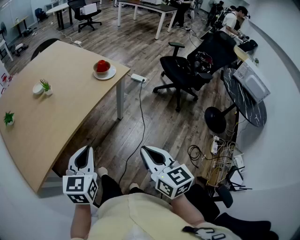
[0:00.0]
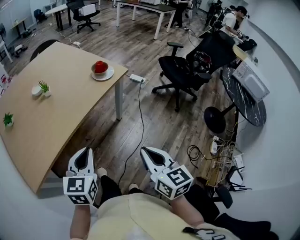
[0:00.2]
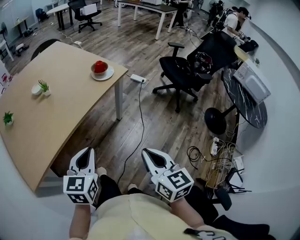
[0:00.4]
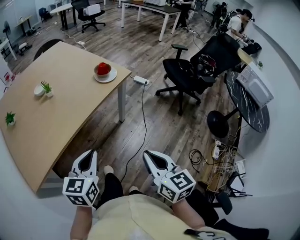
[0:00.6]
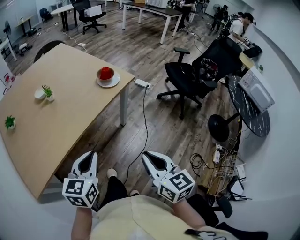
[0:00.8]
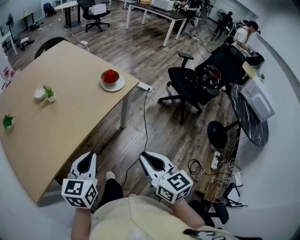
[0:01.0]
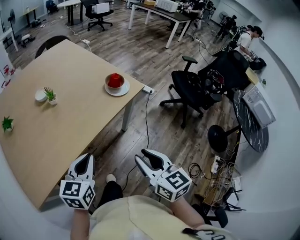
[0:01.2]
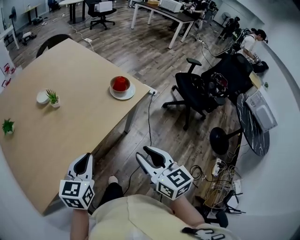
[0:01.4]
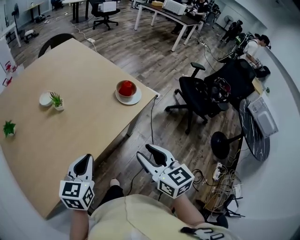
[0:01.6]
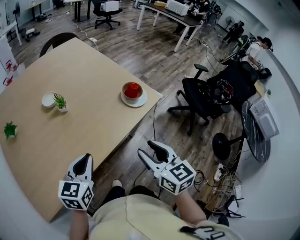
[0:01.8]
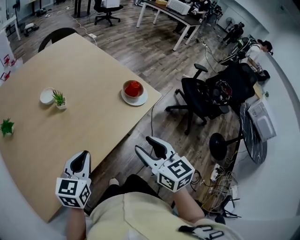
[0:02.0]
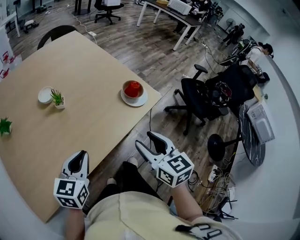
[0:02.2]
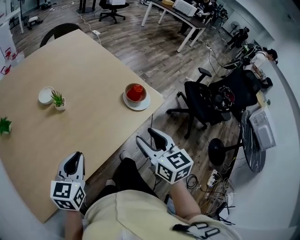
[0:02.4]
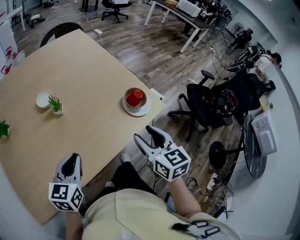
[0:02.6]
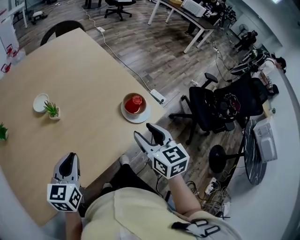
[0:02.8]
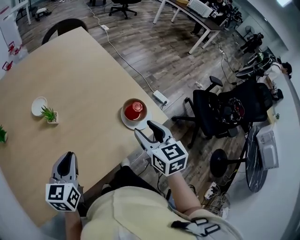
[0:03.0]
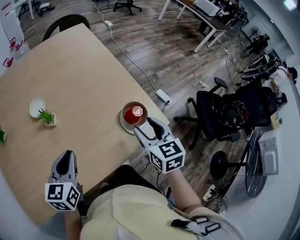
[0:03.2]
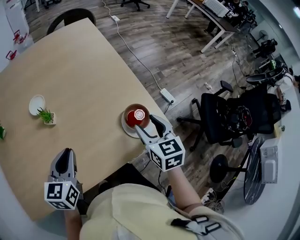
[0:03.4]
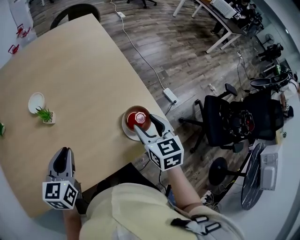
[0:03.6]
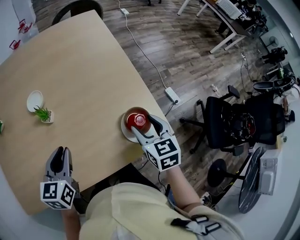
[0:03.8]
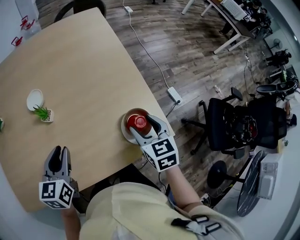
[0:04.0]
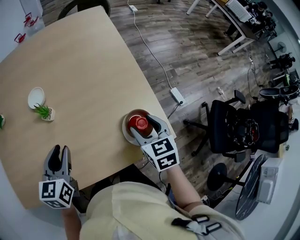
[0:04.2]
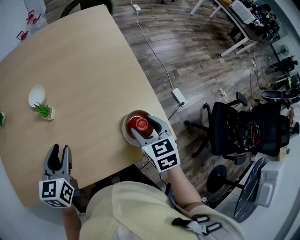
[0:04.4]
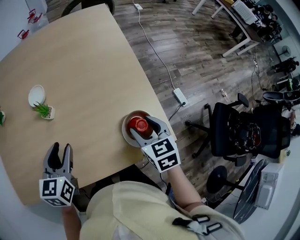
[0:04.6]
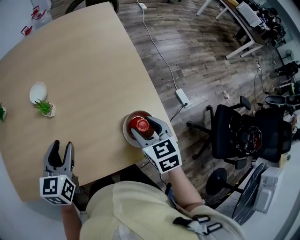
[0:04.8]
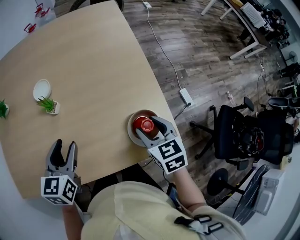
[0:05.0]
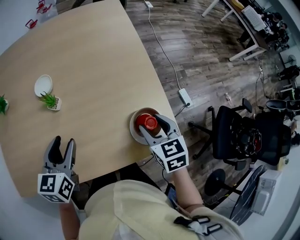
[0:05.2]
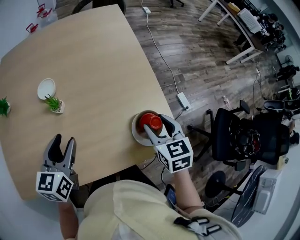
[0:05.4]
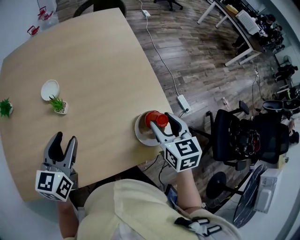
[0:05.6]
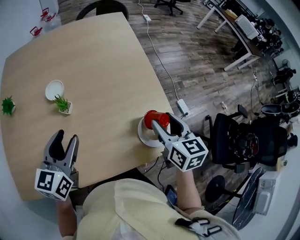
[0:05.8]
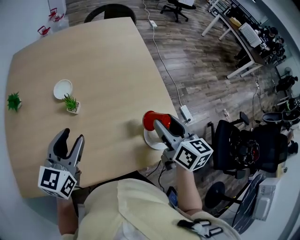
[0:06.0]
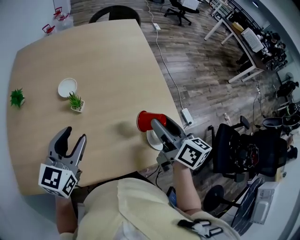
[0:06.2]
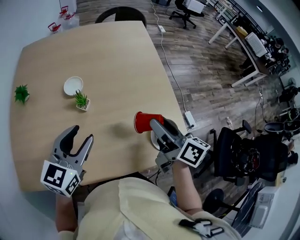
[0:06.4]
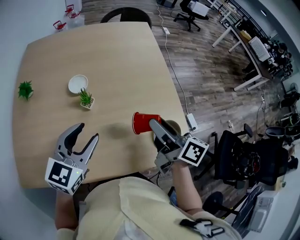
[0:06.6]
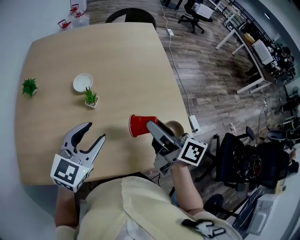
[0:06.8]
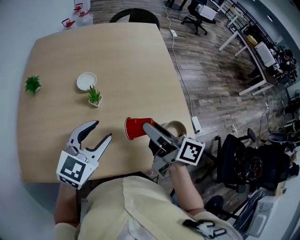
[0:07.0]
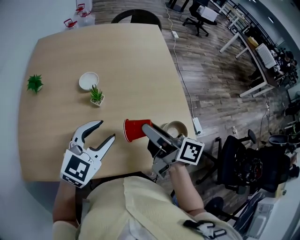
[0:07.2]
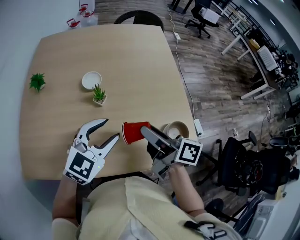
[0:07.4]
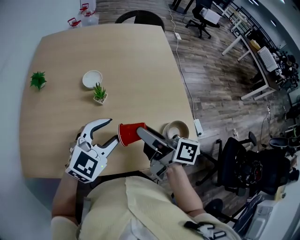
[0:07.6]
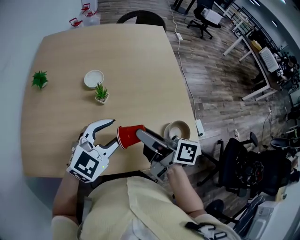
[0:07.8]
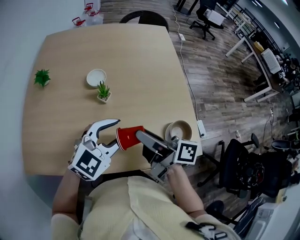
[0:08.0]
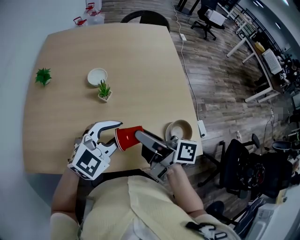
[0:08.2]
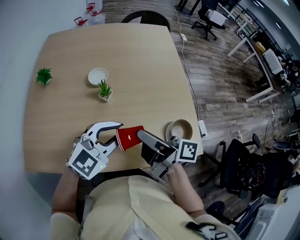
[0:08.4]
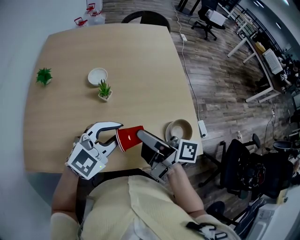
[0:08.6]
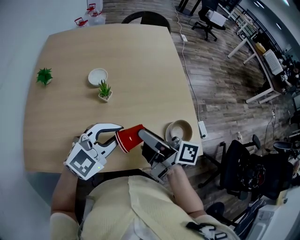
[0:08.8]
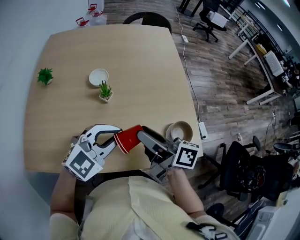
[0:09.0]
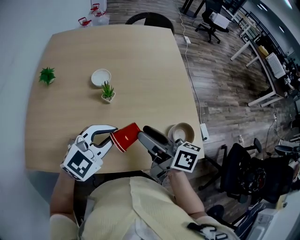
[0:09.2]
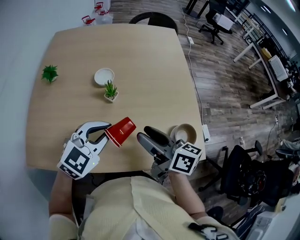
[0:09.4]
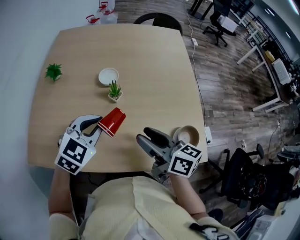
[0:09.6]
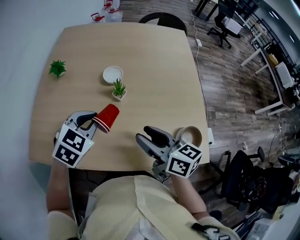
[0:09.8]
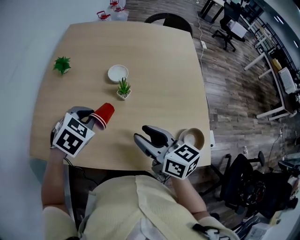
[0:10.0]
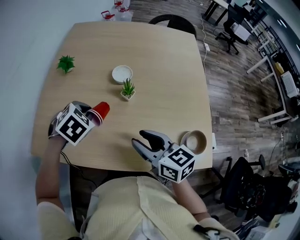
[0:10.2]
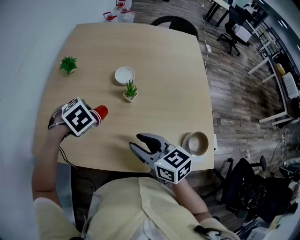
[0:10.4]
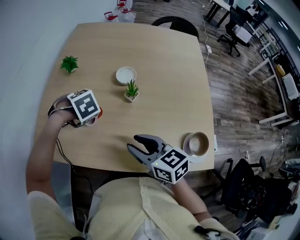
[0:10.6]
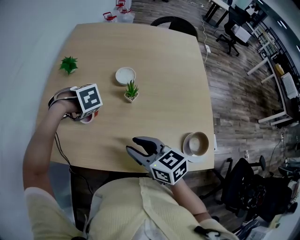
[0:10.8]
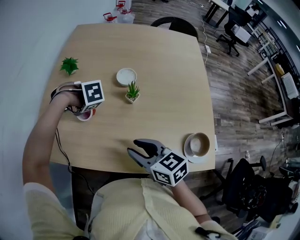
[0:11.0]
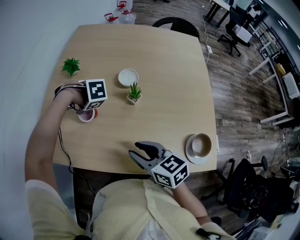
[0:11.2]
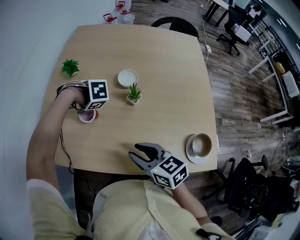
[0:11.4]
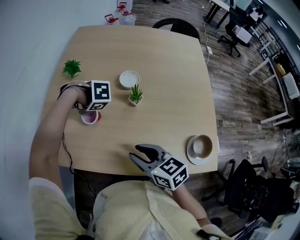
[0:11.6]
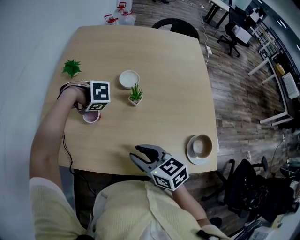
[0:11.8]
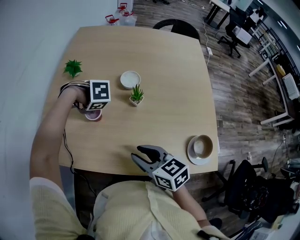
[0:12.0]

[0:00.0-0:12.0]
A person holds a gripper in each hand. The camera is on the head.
0:00.0 to 0:01.6: Both grippers move forward and to the left, about 20 cm. The right gripper opens up.
0:01.6 to 0:03.0: The right gripper travels forward by some 25 cm. The left gripper is displaced forward by some 15 cm.
0:03.0 to 0:04.4: The left gripper moves forward, approximately 5 cm, changes its angle by roughly 20 degrees, and opens its fingers; the right gripper moves forward and downward, approximately 15 cm, and rotates roughly 20 degrees.
0:04.4 to 0:06.0: The left gripper goes some 5 cm upward; the right gripper moves upward, about 10 cm, and rotates some 30 degrees.
0:06.0 to 0:07.6: The right gripper moves to the left, about 15 cm, and changes its angle by approximately 50 degrees. The left gripper shifts by roughly 5 cm, and changes its angle by about 30 degrees.
0:07.6 to 0:09.0: The left gripper closes its fingers.
0:09.0 to 0:10.4: The left gripper changes place by some 25 cm, and tilts its fingers roughly 50 degrees downward, while the right gripper ends up roughly 10 cm from where it was, and swivels roughly 50 degrees.
0:10.4 to 0:12.0: The left gripper changes place by some 5 cm, swivels some 40 degrees, and opens.

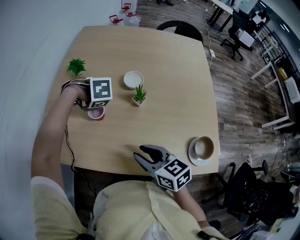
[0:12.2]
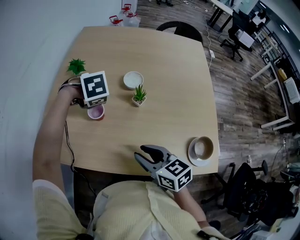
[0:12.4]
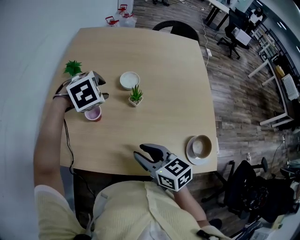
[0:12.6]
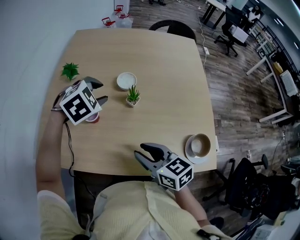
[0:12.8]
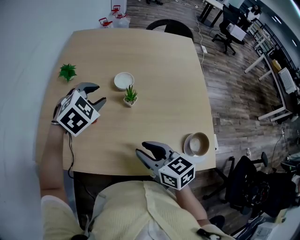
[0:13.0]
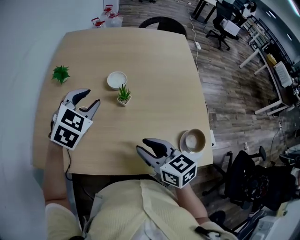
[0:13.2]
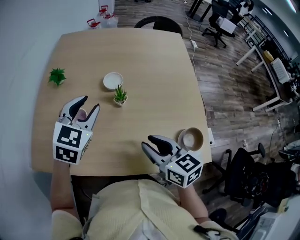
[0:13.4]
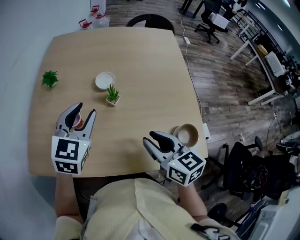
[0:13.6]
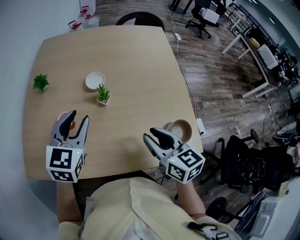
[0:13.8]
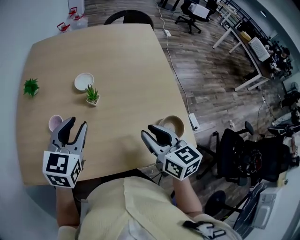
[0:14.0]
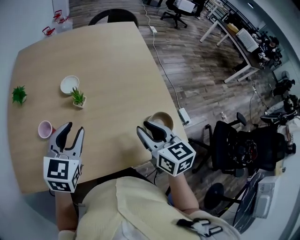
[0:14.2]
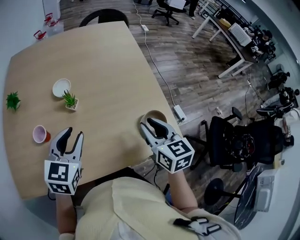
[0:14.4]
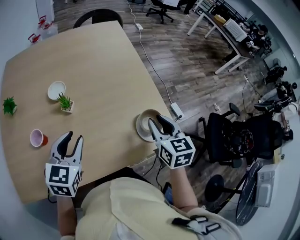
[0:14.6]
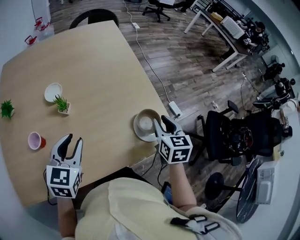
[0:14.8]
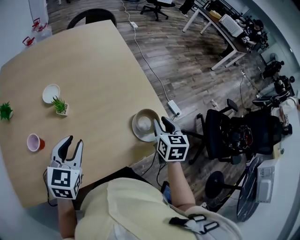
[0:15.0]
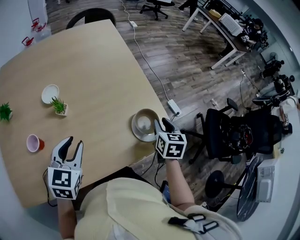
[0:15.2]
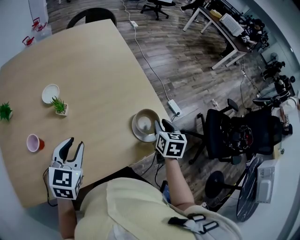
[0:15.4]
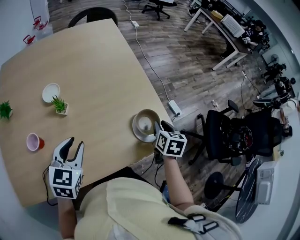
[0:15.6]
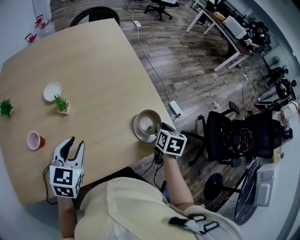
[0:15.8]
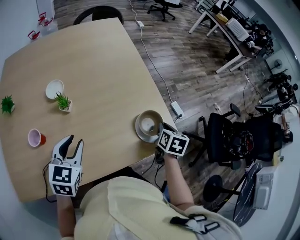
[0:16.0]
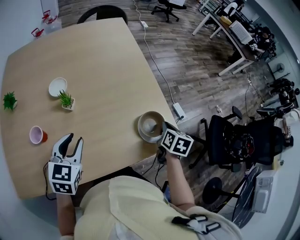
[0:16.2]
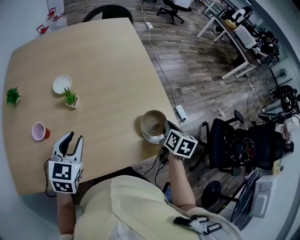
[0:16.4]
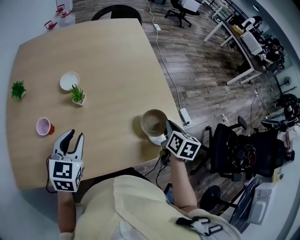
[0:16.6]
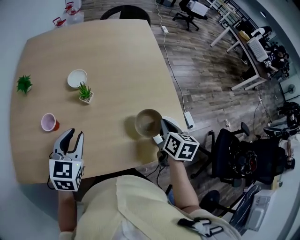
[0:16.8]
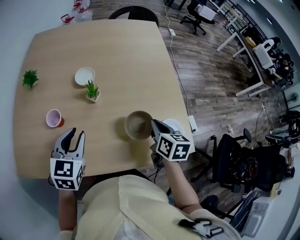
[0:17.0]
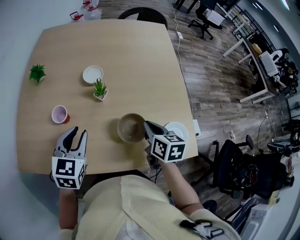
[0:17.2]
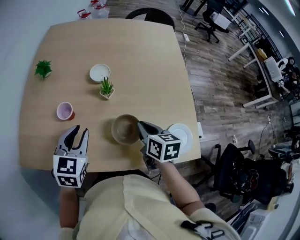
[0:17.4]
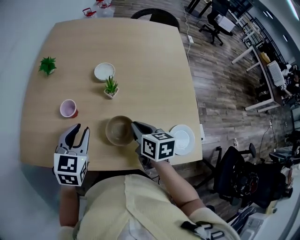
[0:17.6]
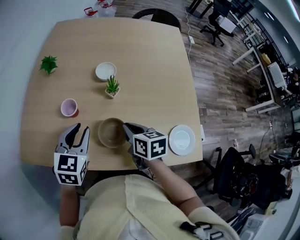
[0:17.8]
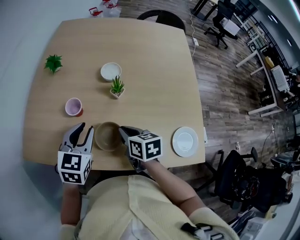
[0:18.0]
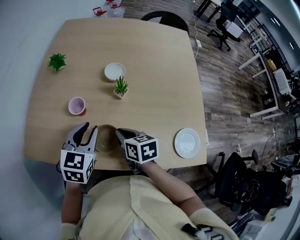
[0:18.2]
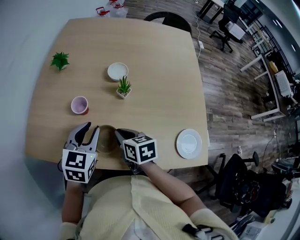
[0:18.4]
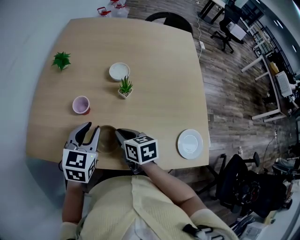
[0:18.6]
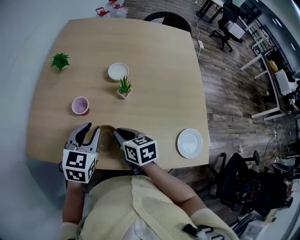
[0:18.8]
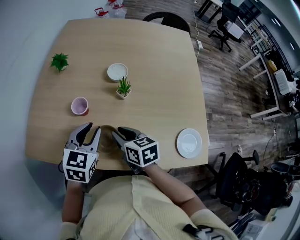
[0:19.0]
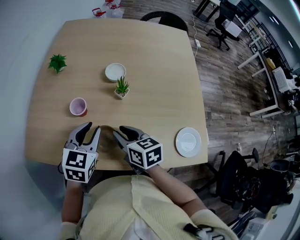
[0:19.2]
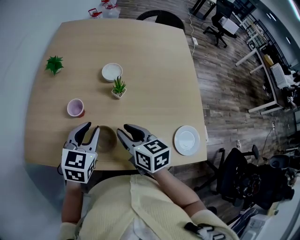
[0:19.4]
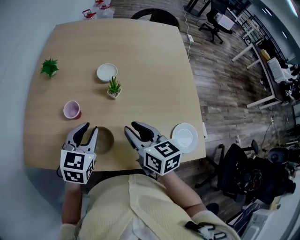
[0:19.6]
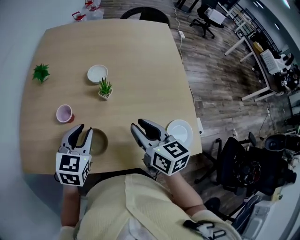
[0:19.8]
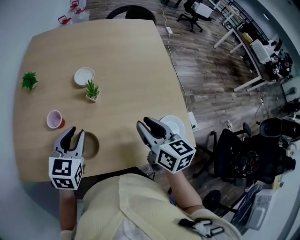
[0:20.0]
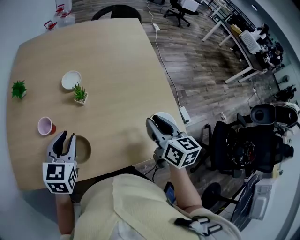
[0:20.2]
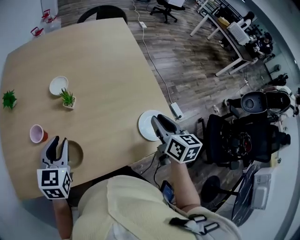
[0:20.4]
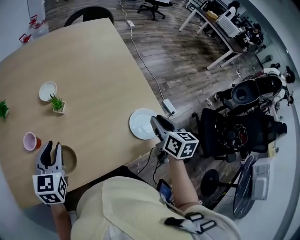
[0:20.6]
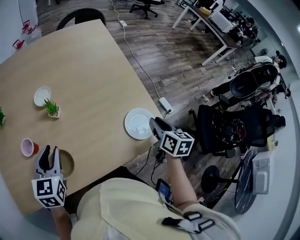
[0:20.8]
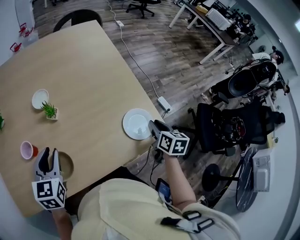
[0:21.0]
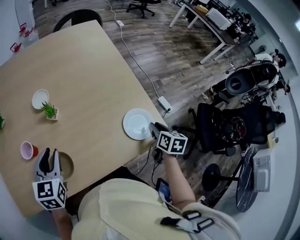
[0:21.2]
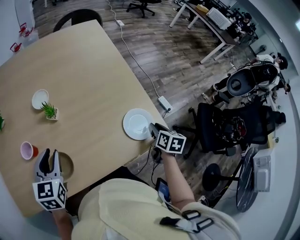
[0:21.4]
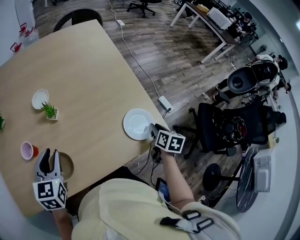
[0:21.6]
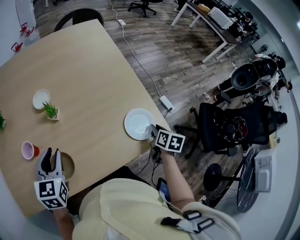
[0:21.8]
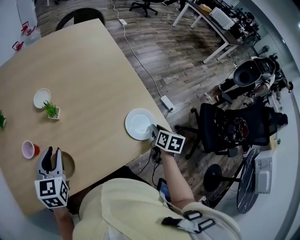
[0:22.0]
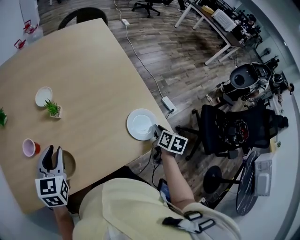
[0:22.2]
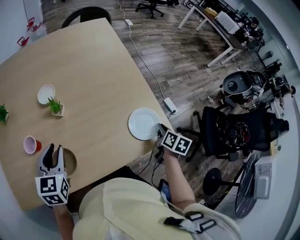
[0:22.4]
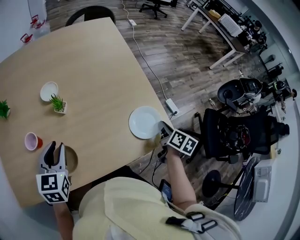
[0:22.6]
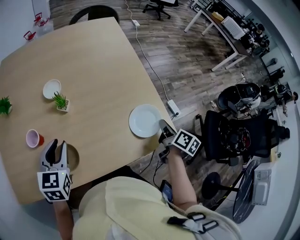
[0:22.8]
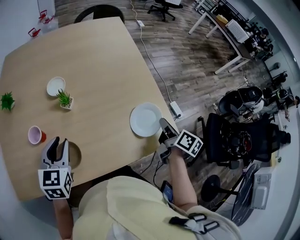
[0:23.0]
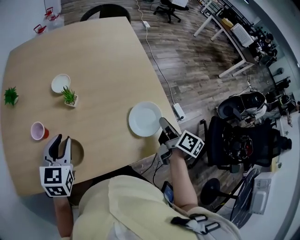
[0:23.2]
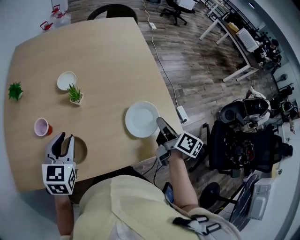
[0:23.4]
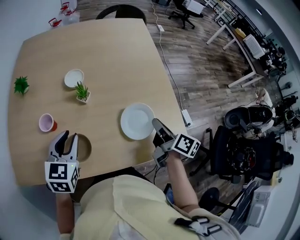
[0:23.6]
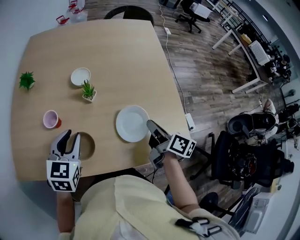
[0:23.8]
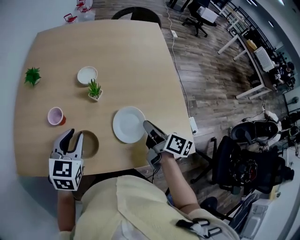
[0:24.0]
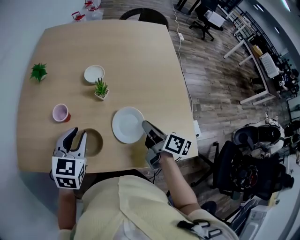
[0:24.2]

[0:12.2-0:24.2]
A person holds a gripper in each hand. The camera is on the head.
0:12.2 to 0:13.8: The right gripper moves approximately 15 cm, and changes its angle by about 30 degrees, while the left gripper is displaced upward by roughly 15 cm, and angles its fingers upward, by about 70 degrees.
0:13.8 to 0:15.2: The right gripper ends up roughly 25 cm from where it was, and turns by roughly 50 degrees. The left gripper ends up about 15 cm from where it was.
0:15.2 to 0:16.6: The right gripper closes, while the left gripper moves to the left, approximately 5 cm.
0:16.6 to 0:18.2: The right gripper ends up approximately 35 cm from where it was, and turns by roughly 50 degrees, while the left gripper changes place by approximately 10 cm.
0:18.2 to 0:19.8: The right gripper moves upward and to the right, roughly 15 cm, and swivels roughly 20 degrees.
0:19.8 to 0:21.2: The right gripper moves about 35 cm, and turns by about 50 degrees.
0:21.2 to 0:22.6: The grippers move only a little.
0:22.6 to 0:24.2: The right gripper ends up roughly 25 cm from where it was, and turns by roughly 40 degrees.
